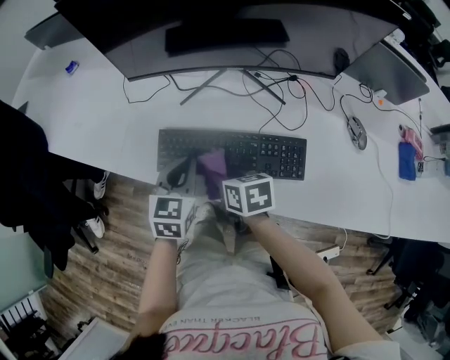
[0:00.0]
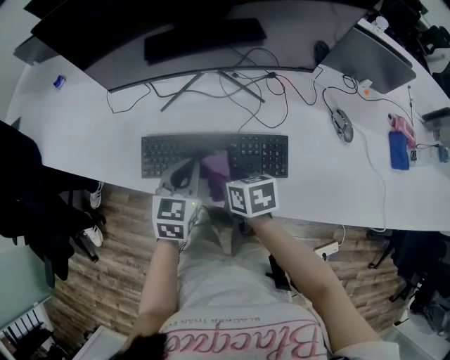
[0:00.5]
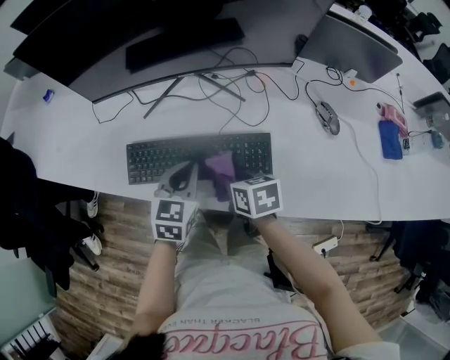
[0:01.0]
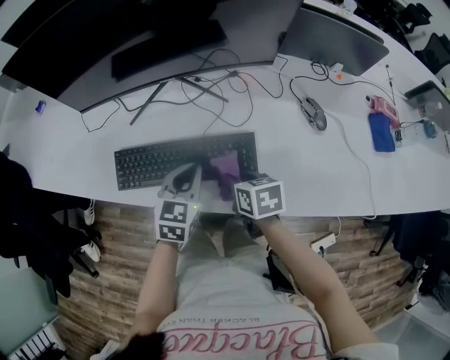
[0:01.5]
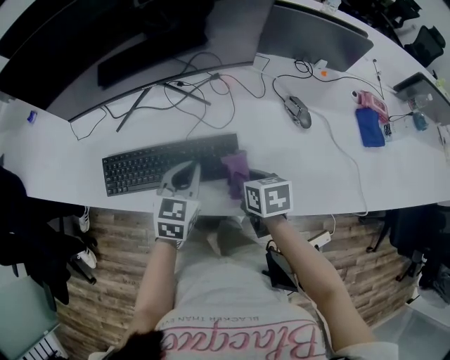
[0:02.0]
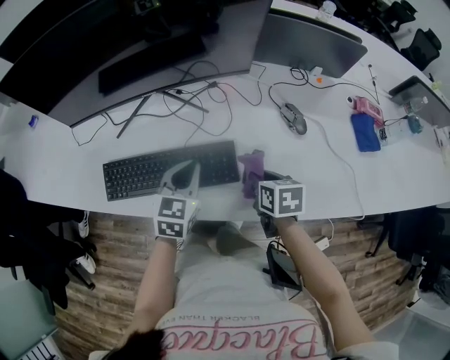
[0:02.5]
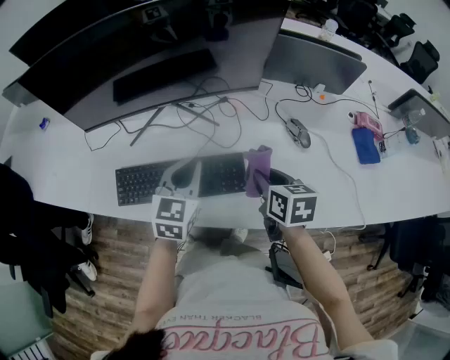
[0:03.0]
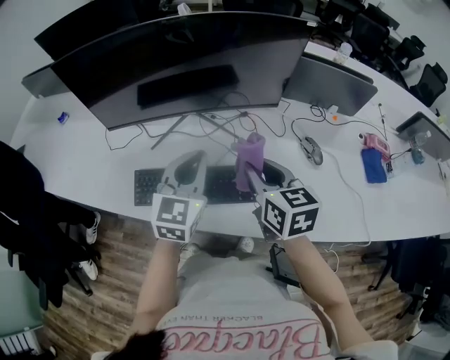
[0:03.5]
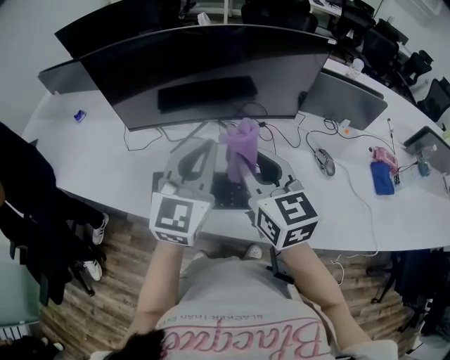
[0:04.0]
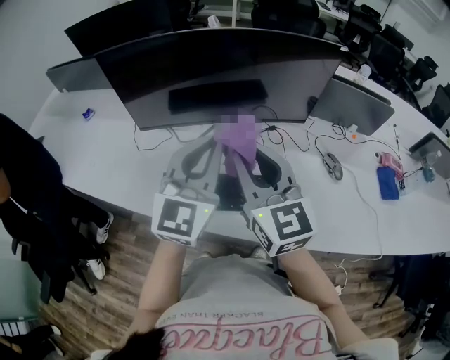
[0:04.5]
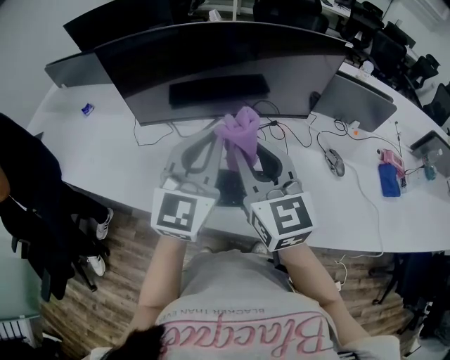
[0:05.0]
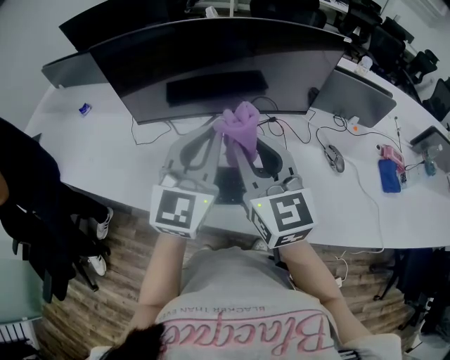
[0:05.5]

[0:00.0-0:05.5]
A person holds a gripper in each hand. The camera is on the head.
0:00.0 to 0:02.0: The grippers both shift to the right by approximately 25 cm.
0:02.0 to 0:03.5: Both grippers travel together upward, some 15 cm. The left gripper changes its angle by roughly 20 degrees. The right gripper rotates about 30 degrees.
0:03.5 to 0:05.5: The right gripper travels to the left and upward by about 15 cm, and swivels roughly 30 degrees. The left gripper shifts some 15 cm upward and to the left.

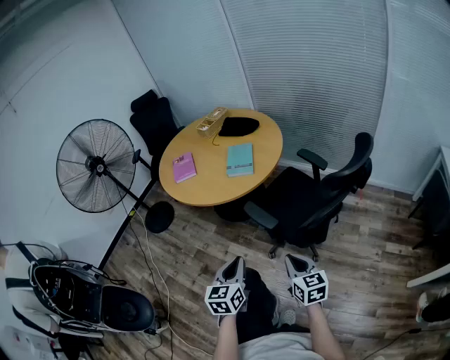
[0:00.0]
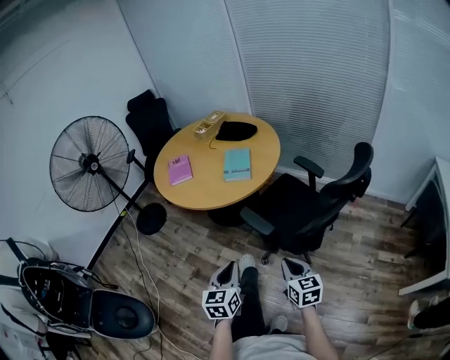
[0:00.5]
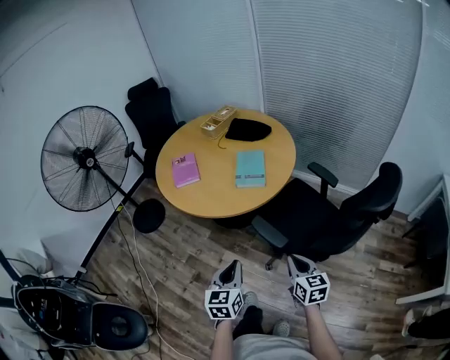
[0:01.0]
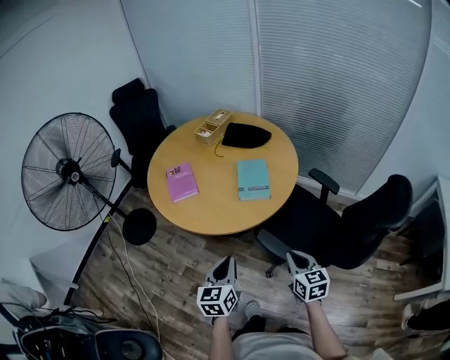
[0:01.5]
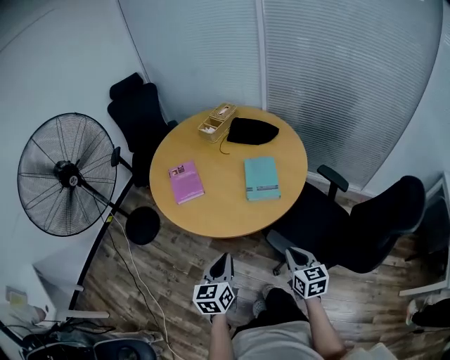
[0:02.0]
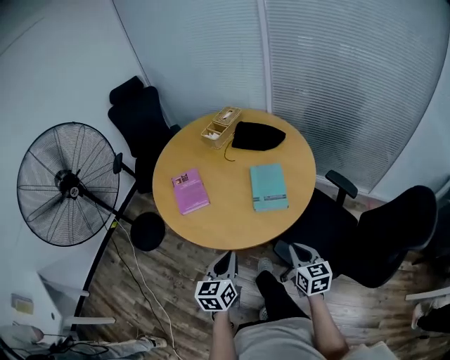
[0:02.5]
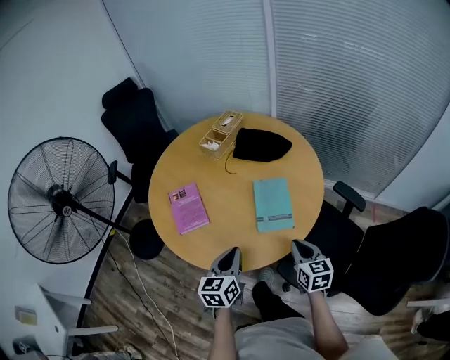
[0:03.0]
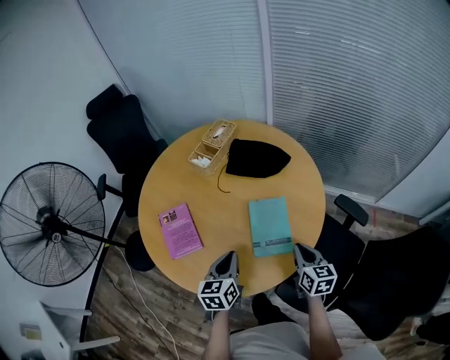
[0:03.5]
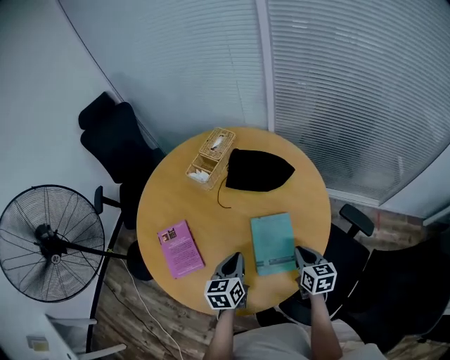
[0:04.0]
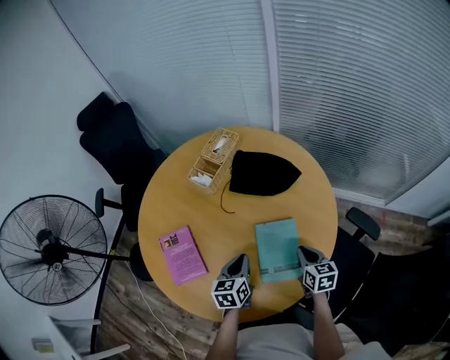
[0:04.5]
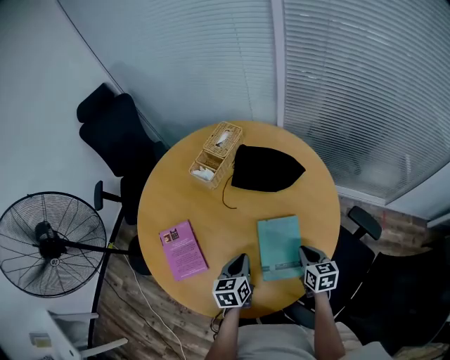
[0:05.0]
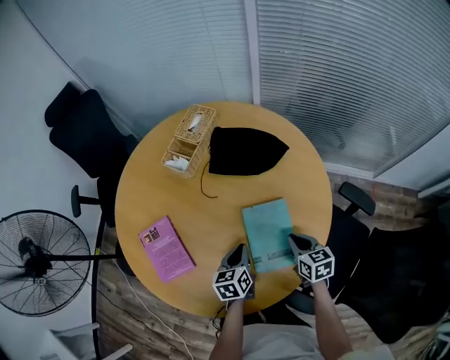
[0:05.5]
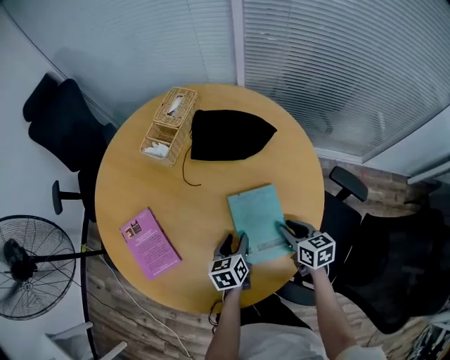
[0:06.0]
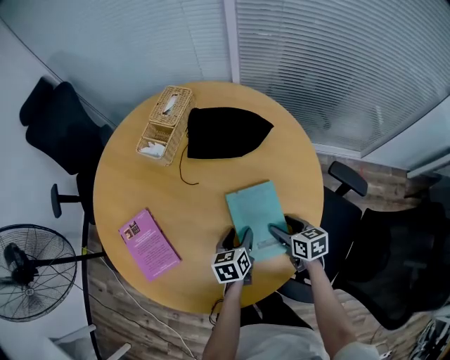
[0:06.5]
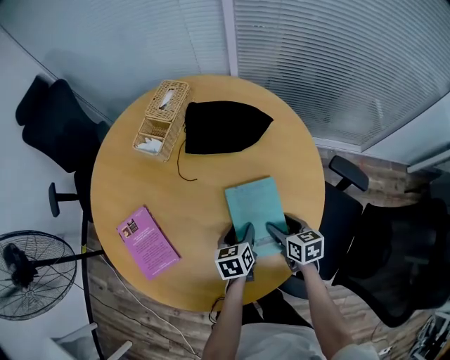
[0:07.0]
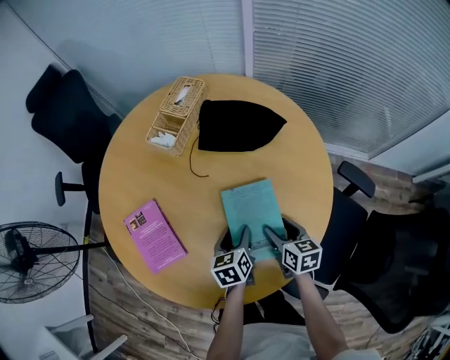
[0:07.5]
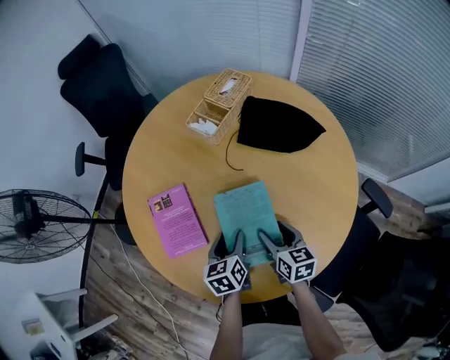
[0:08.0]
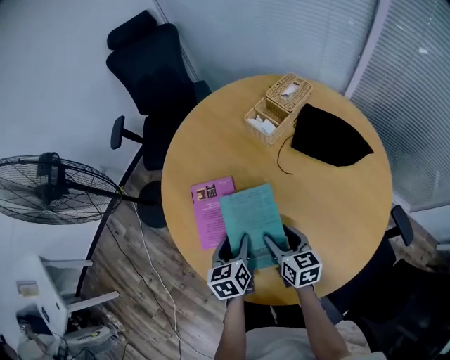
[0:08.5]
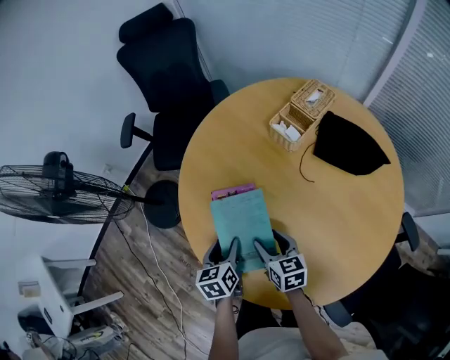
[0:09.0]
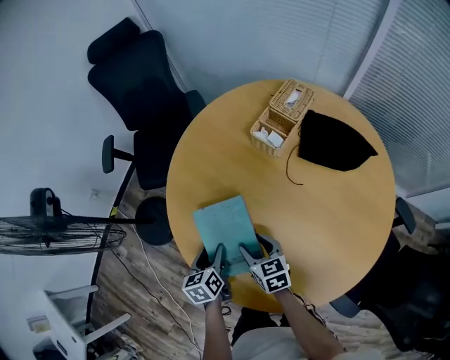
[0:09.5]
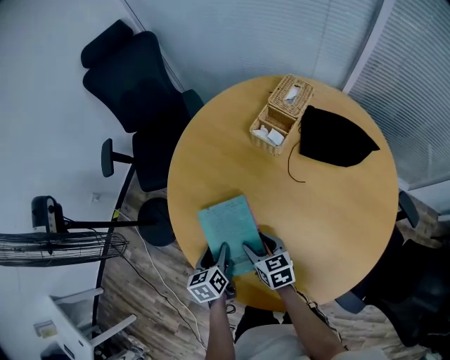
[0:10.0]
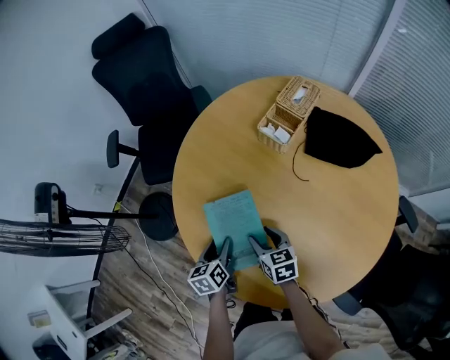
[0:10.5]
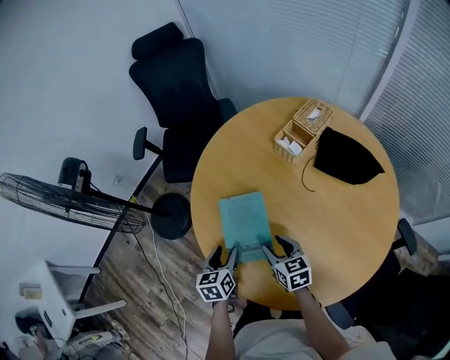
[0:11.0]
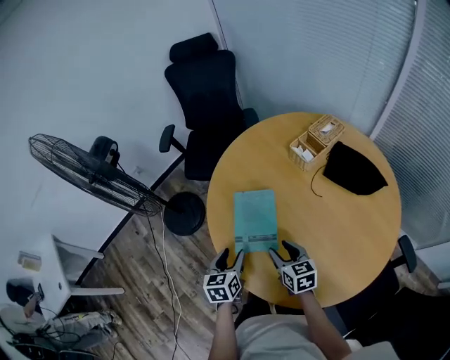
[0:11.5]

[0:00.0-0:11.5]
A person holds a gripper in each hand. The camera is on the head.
0:00.0 to 0:02.0: The two grippers go roughly 30 cm forward and to the left.
0:02.0 to 0:04.0: Both grippers travel together forward, some 35 cm.
0:04.0 to 0:06.0: The left gripper shifts approximately 15 cm downward, and opens up; the right gripper is displaced downward by approximately 10 cm.
0:06.0 to 0:07.5: The right gripper travels to the left by roughly 5 cm, and opens up.
0:07.5 to 0:09.5: The right gripper shifts by approximately 40 cm, and turns by some 30 degrees. The left gripper ends up approximately 35 cm from where it was.
0:09.5 to 0:11.5: The grippers both shift backward and upward by some 10 cm.

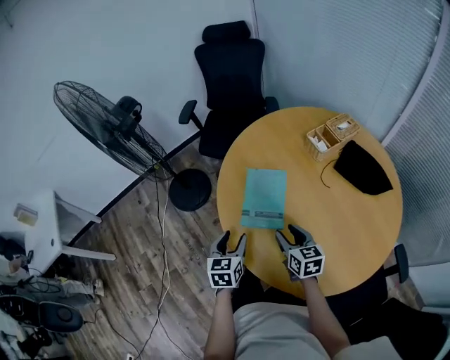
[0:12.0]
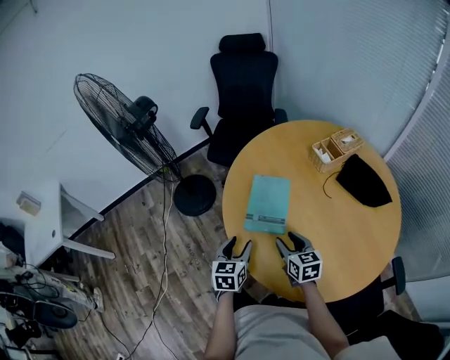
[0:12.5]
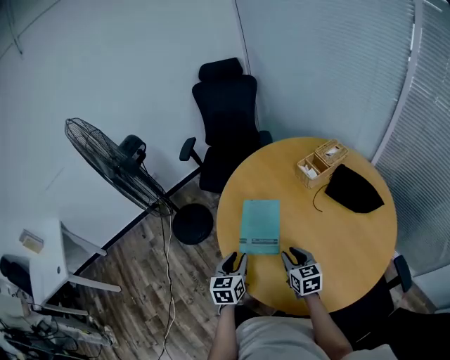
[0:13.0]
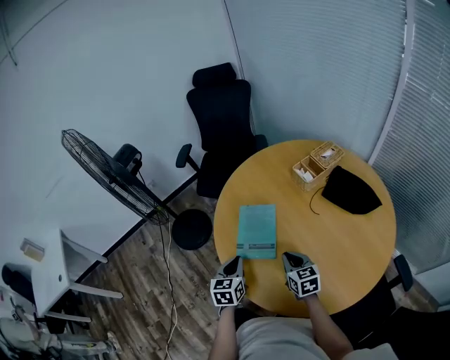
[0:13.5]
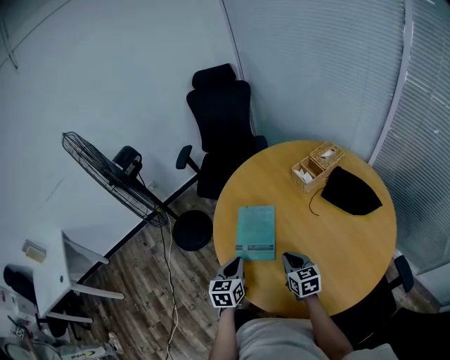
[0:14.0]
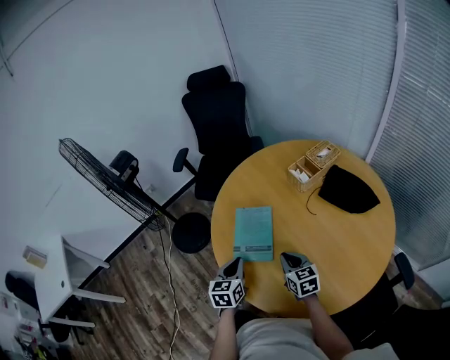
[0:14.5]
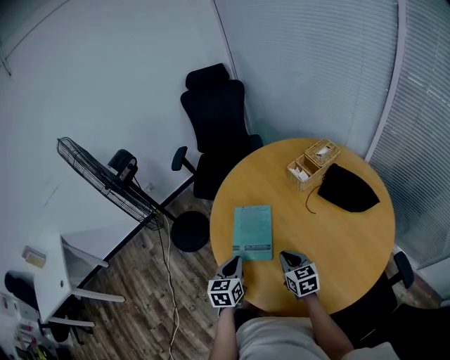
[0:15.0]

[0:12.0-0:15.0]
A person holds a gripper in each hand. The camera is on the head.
0:12.0 to 0:13.5: The left gripper closes up. Meanwhile the right gripper closes.
0:13.5 to 0:15.0: The grippers stay close to where they were, moving slightly.

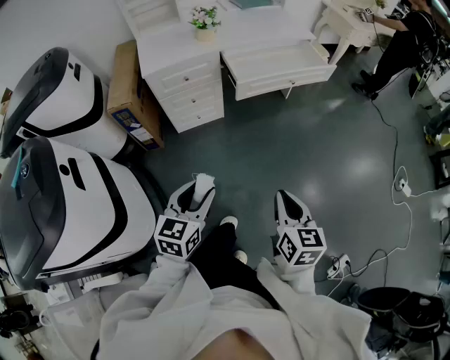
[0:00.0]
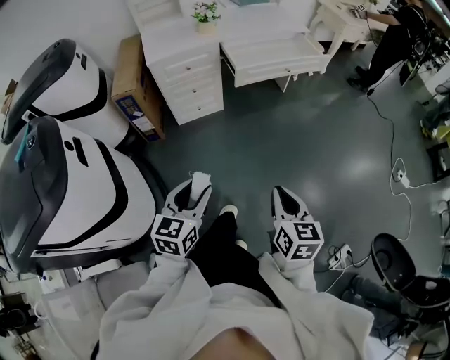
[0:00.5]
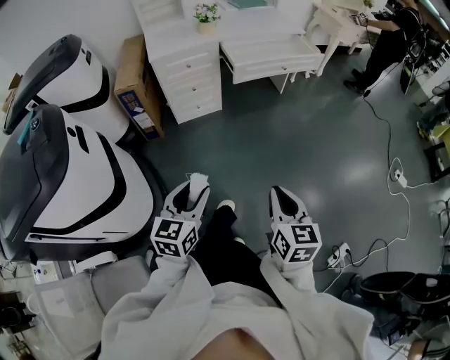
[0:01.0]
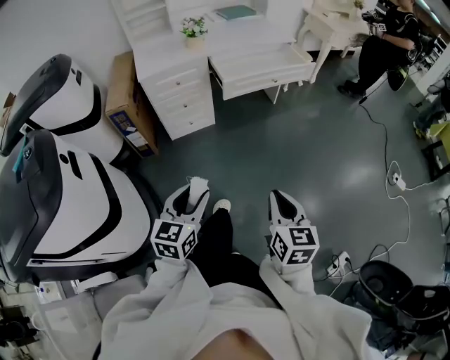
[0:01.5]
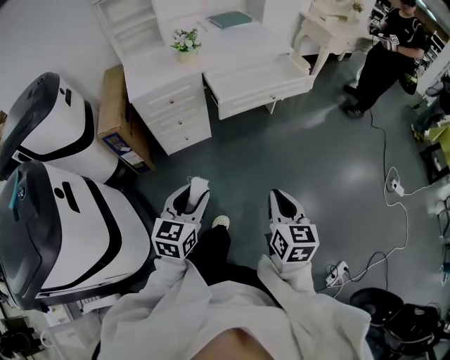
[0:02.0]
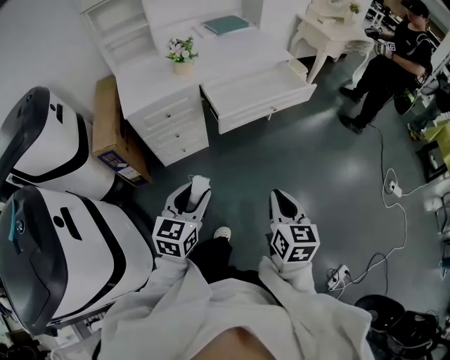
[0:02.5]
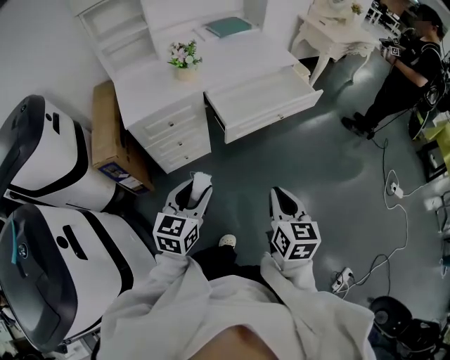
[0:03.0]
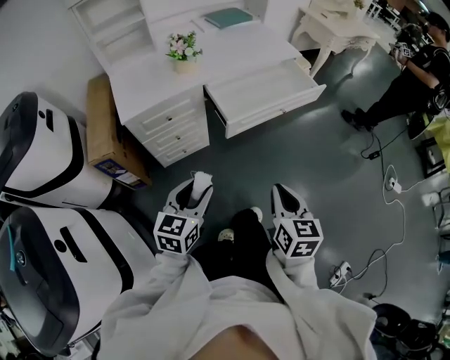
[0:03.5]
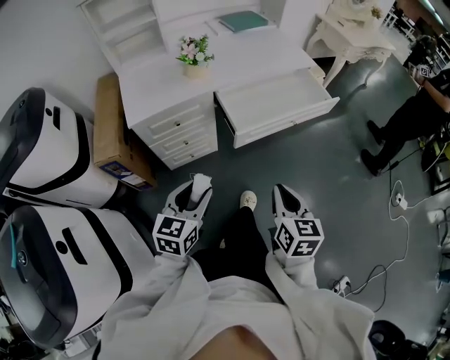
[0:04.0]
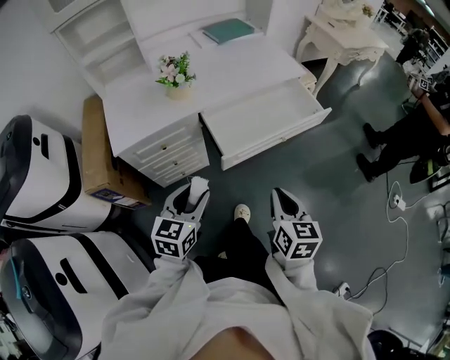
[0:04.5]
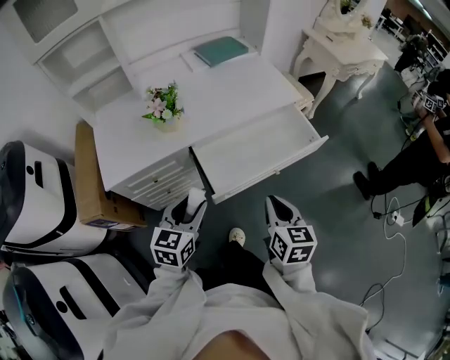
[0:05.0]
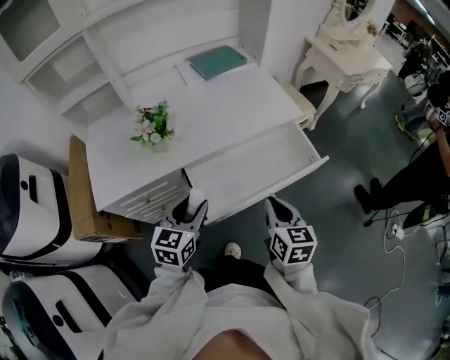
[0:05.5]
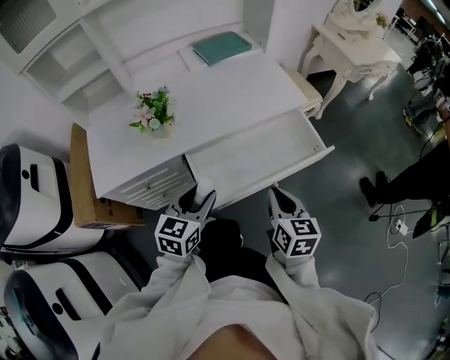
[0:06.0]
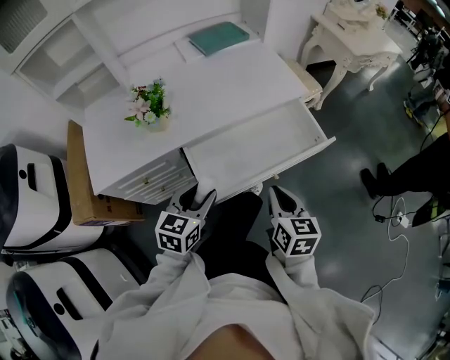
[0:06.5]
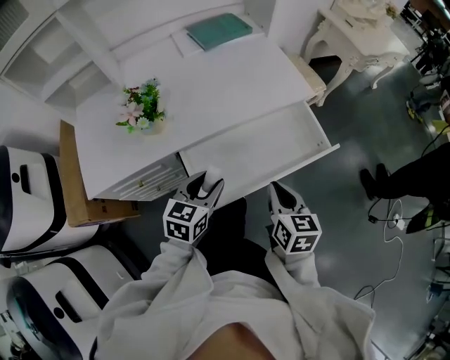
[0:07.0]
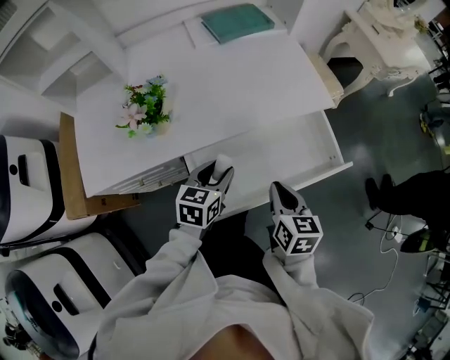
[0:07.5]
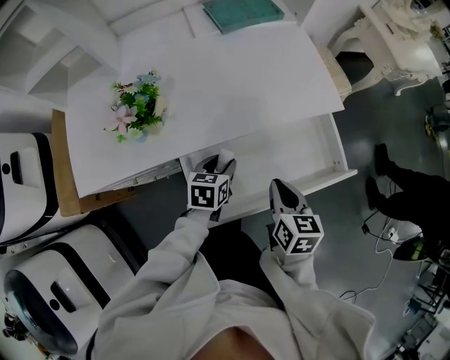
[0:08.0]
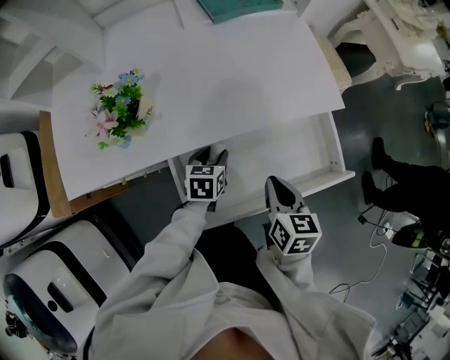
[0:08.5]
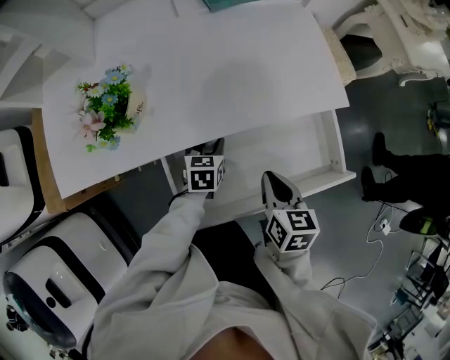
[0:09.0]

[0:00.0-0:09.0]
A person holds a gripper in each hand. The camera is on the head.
0:00.0 to 0:02.0: The right gripper moves approximately 15 cm backward and comes back. The left gripper travels backward and back again, approximately 15 cm each way.
0:02.0 to 0:04.5: Both grippers travel together forward, about 30 cm.
0:04.5 to 0:07.0: The two grippers go some 25 cm forward.
0:07.0 to 0:09.0: The right gripper goes about 15 cm forward and downward, while the left gripper goes about 25 cm downward and forward, and rotates about 30 degrees.
